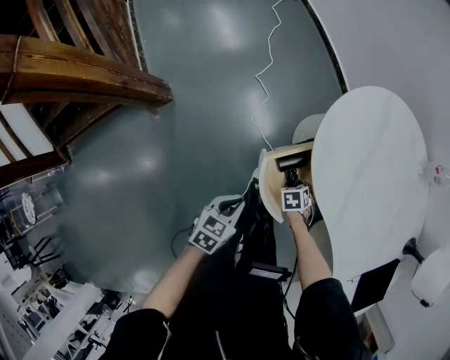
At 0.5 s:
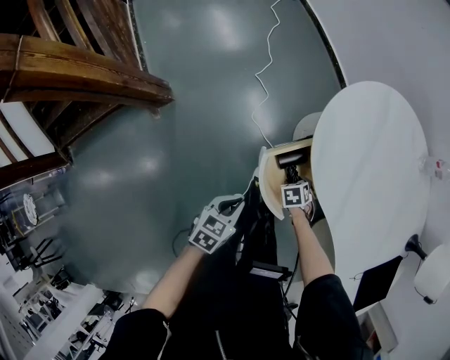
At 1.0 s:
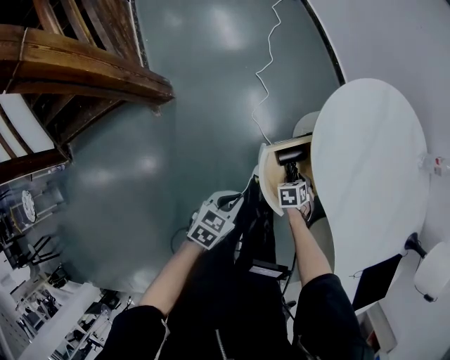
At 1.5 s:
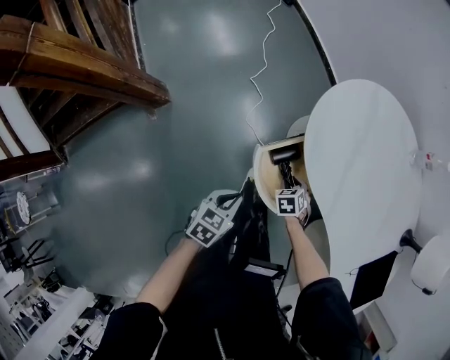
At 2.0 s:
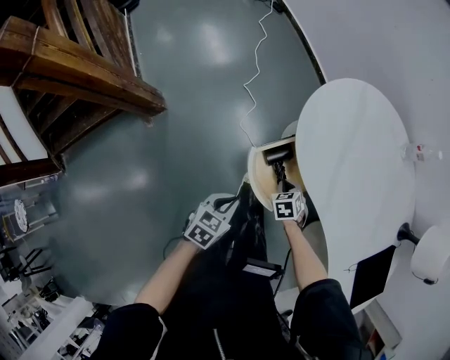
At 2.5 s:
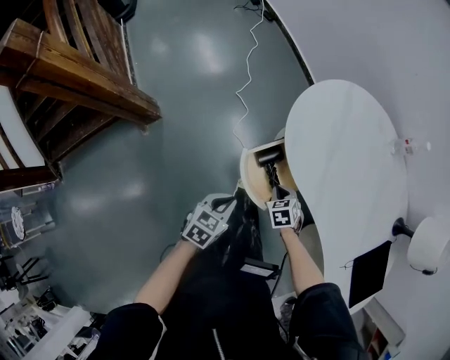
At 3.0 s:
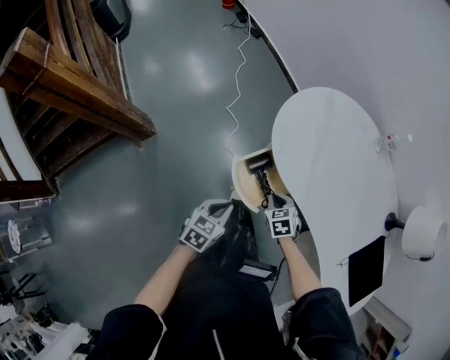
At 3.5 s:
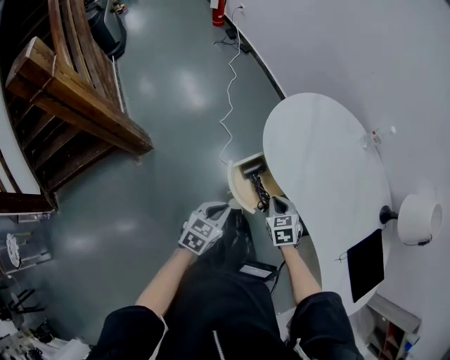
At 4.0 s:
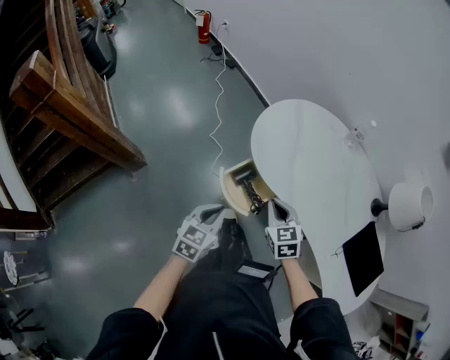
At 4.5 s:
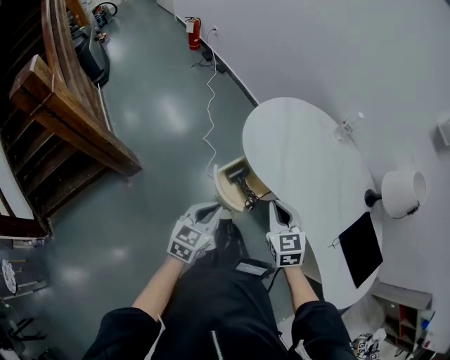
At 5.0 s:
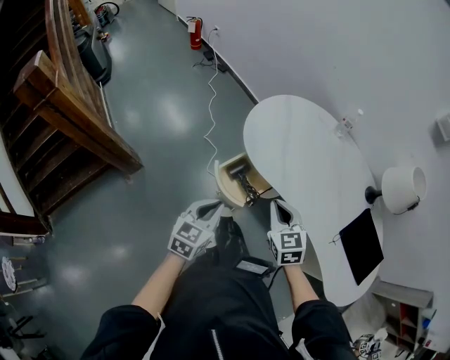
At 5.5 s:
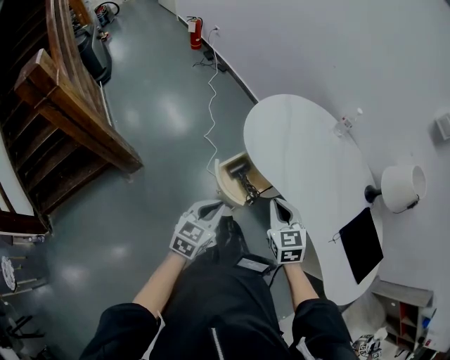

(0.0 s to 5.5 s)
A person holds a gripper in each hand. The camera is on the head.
0.0 s - 2.0 s: The right gripper goes about 5 cm upward, and closes up.
2.0 s - 3.5 s: The right gripper travels upward by roughly 15 cm; the left gripper shifts approximately 10 cm upward.
3.5 s - 5.5 s: The right gripper shifts about 20 cm upward and backward, and swivels about 20 degrees. Meanwhile the left gripper heads upward, covering about 10 cm.

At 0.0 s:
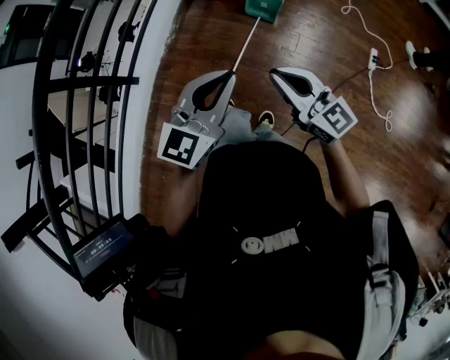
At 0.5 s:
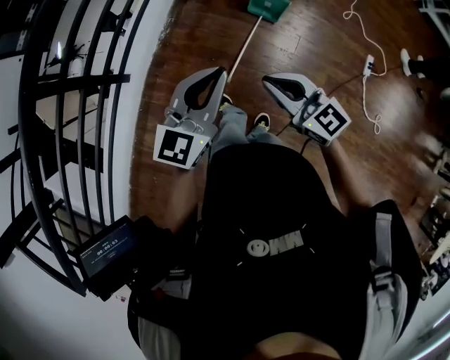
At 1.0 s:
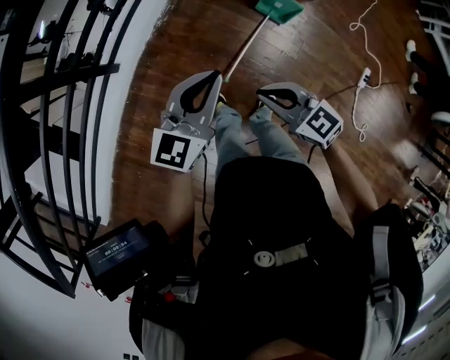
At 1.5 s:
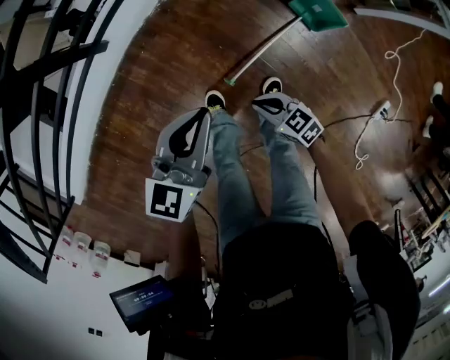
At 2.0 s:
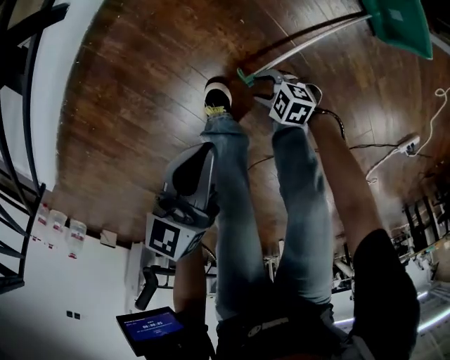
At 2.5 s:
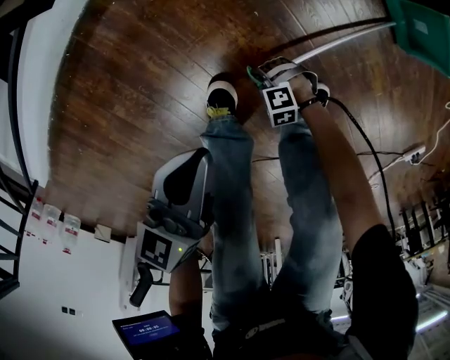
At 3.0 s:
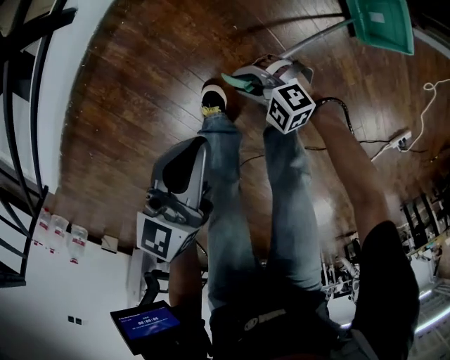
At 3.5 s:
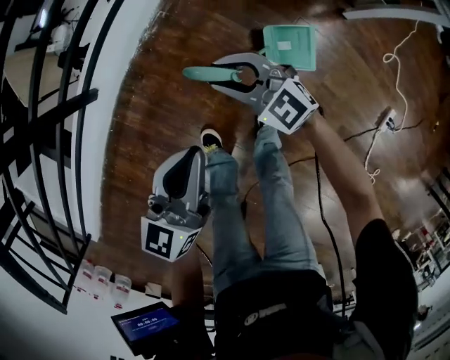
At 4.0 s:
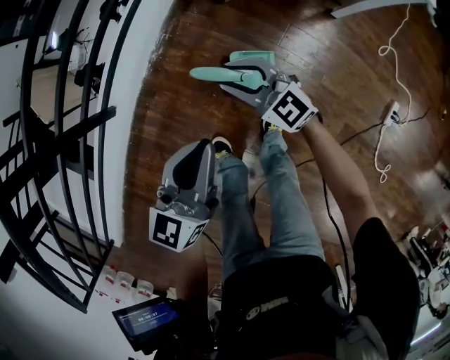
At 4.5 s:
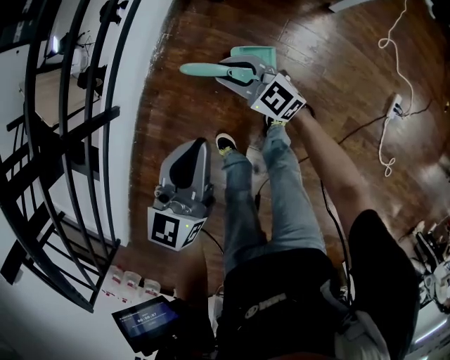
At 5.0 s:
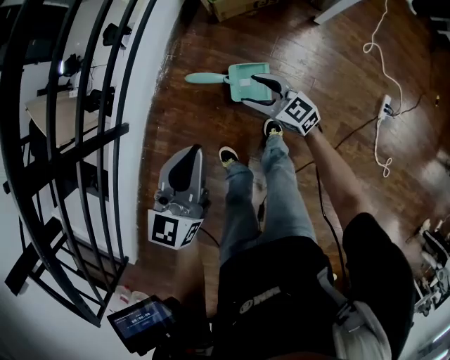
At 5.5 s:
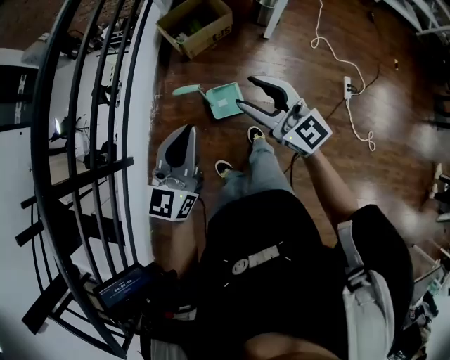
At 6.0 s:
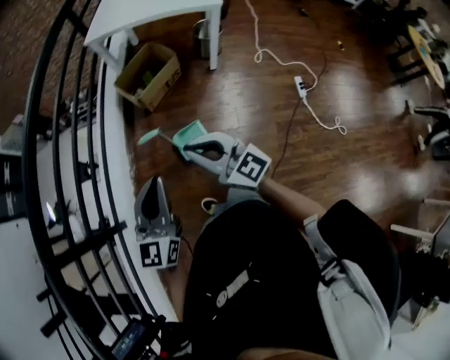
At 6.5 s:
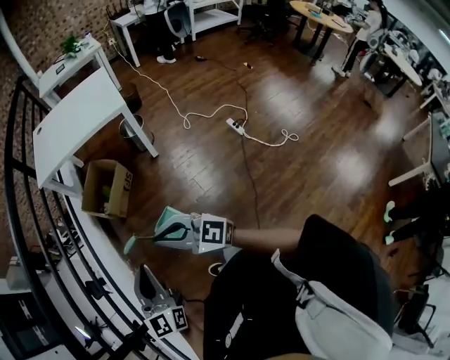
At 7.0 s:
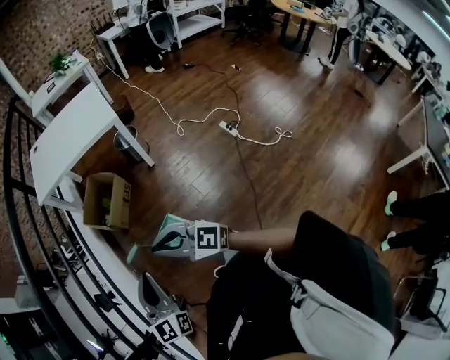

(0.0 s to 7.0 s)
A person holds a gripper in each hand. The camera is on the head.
0.0 s - 2.0 s: The two grippers go some 60 cm downward. The right gripper tilts its fingers about 50 degrees downward, and opens; the left gripper swivels some 60 degrees.
2.0 s - 3.5 s: The left gripper goes about 25 cm upward, and swivels approximately 30 degrees; the right gripper shifts about 40 cm upward, and tips its fingers upward by about 30 degrees.
3.5 s - 5.0 s: The left gripper heads upward, covering approximately 10 cm, while the right gripper goes about 10 cm to the right, turns by some 30 degrees, and opens.
5.0 s - 7.0 s: The right gripper shifts about 30 cm upward, swivels some 40 degrees, and closes; the left gripper moves upward, roughly 10 cm, and swivels approximately 30 degrees.

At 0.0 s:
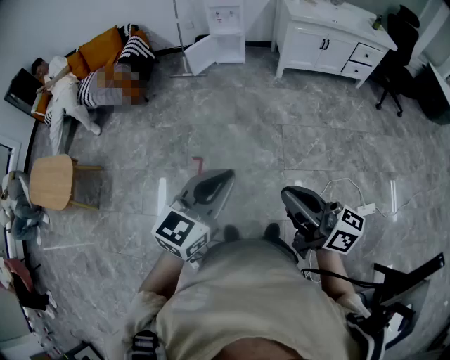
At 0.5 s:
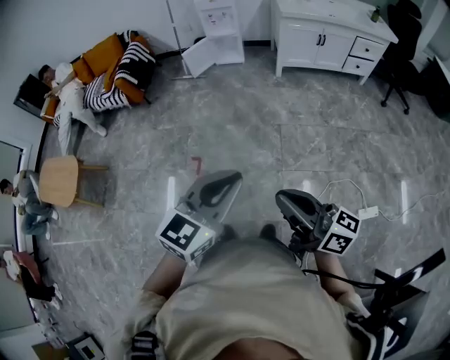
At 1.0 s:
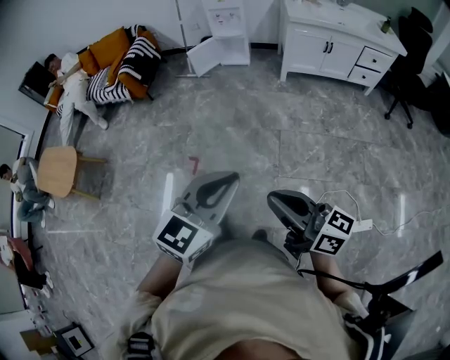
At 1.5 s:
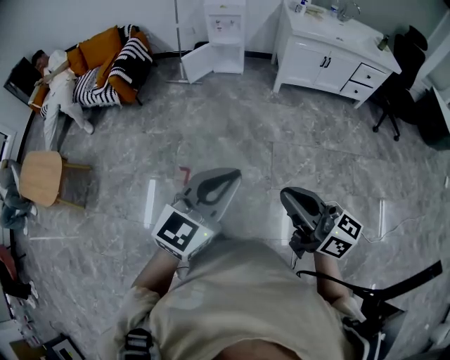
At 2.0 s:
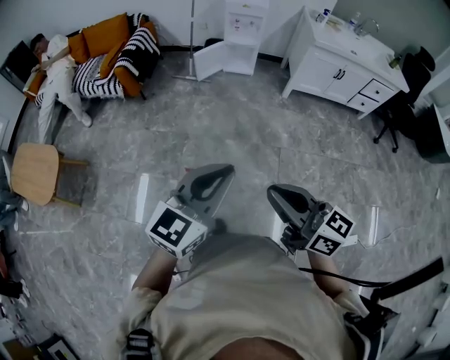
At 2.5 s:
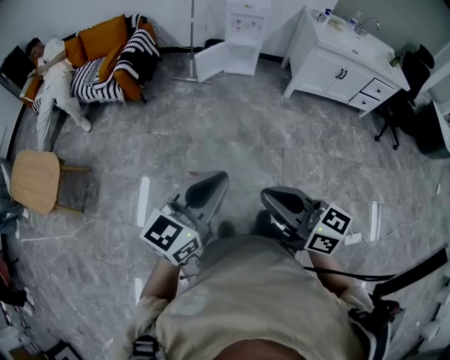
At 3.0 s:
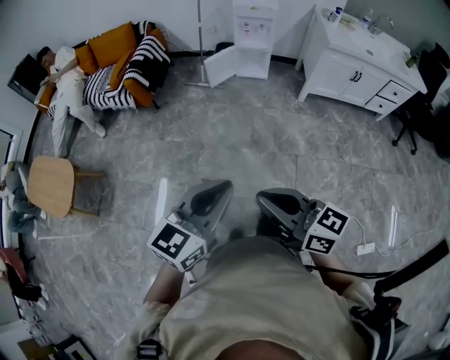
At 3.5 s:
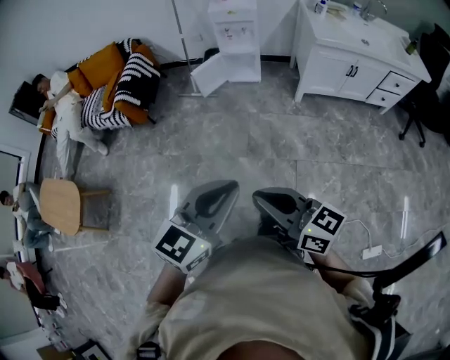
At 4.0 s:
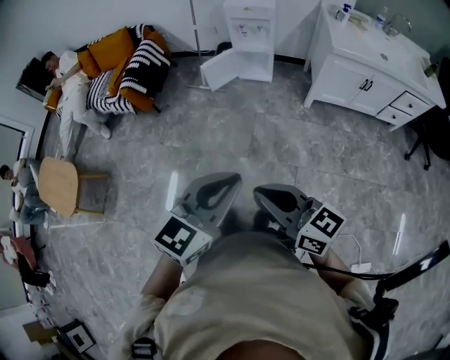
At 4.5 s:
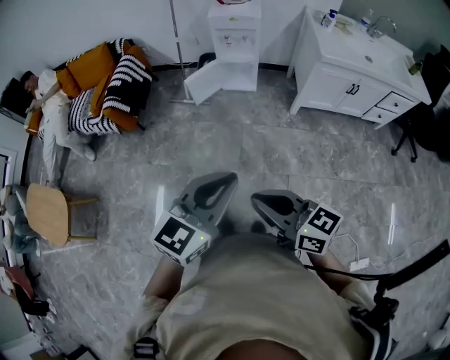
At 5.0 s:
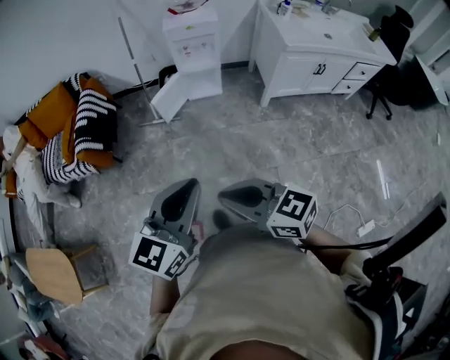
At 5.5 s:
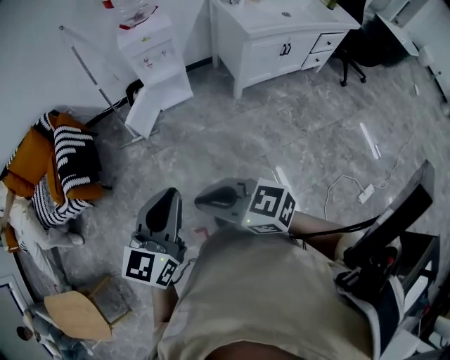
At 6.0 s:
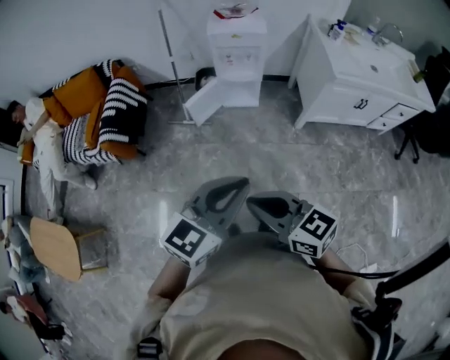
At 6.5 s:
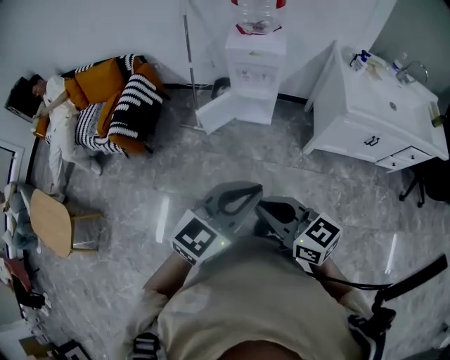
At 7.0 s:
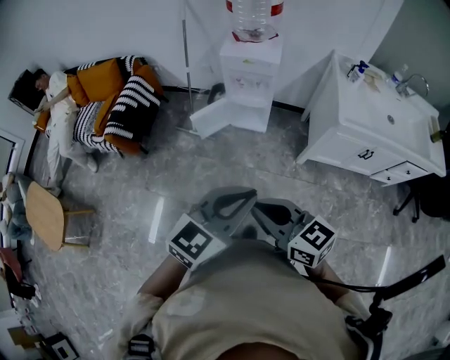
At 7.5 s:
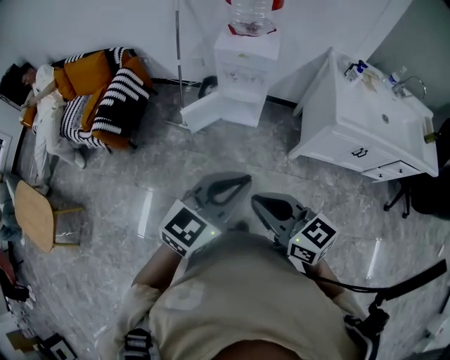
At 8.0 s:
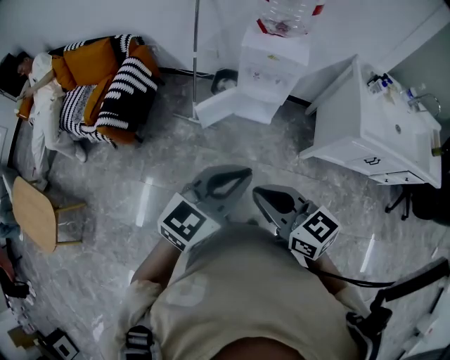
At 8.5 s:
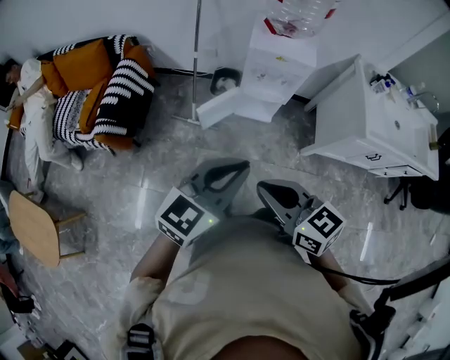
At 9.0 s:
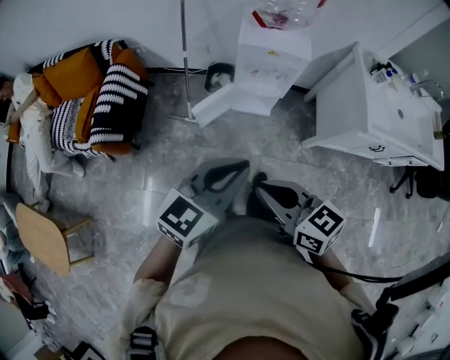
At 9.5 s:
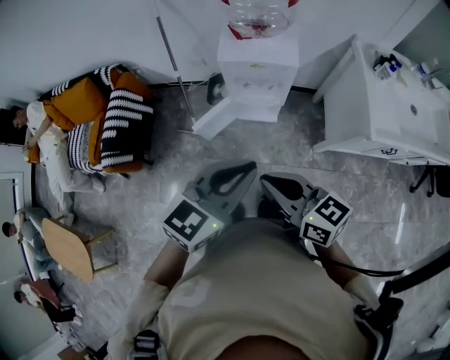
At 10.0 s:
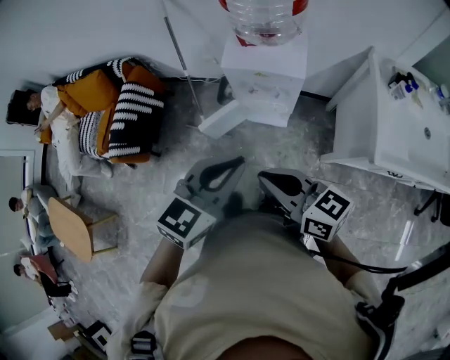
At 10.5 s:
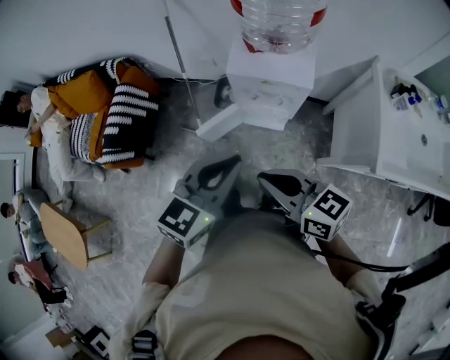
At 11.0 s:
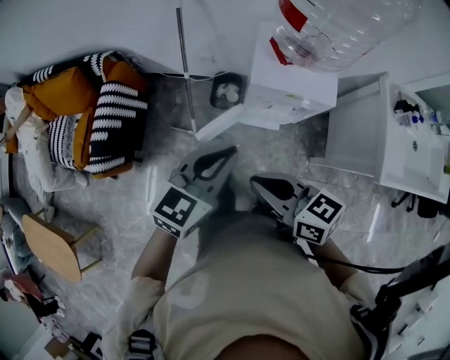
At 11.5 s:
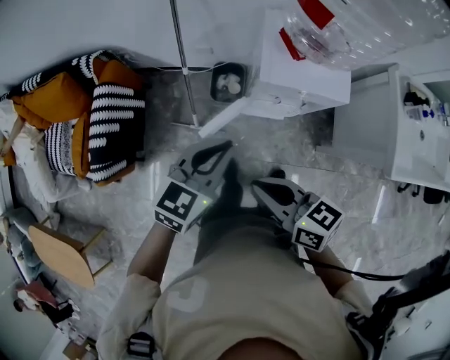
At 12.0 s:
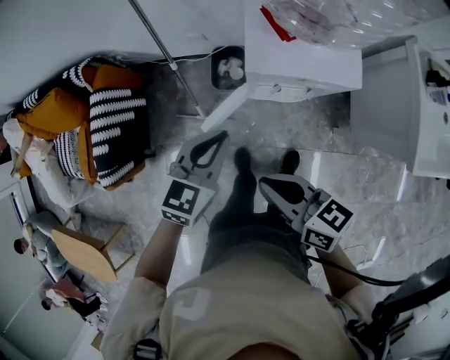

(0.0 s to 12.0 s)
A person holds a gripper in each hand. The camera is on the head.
0.0 s - 2.0 s: Both grippers move forward, some 15 cm. The left gripper travels to the right and back again, roughly 15 cm each way. The right gripper travels to the right and back again, some 15 cm each way.
2.0 s - 4.0 s: The grippers both shift forward and to the right by about 25 cm.
4.0 s - 6.0 s: The right gripper travels forward and to the left by about 25 cm. The left gripper moves forward, about 25 cm.
6.0 s - 8.0 s: Both grippers travel together forward, roughly 20 cm.
8.0 s - 10.0 s: The right gripper shifts approximately 25 cm forward and to the right, while the left gripper is displaced forward by about 20 cm.
10.0 s - 12.0 s: The left gripper moves forward, downward and to the left, approximately 35 cm. Meanwhile the right gripper is displaced forward, to the left and downward by roughly 25 cm.

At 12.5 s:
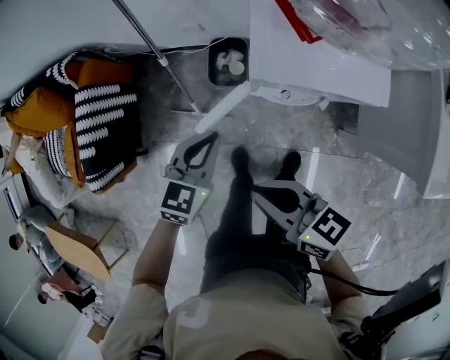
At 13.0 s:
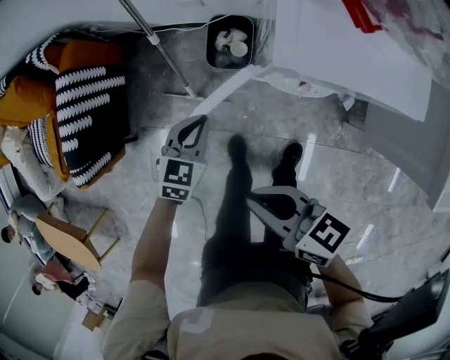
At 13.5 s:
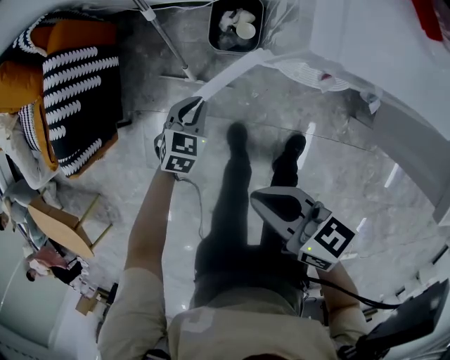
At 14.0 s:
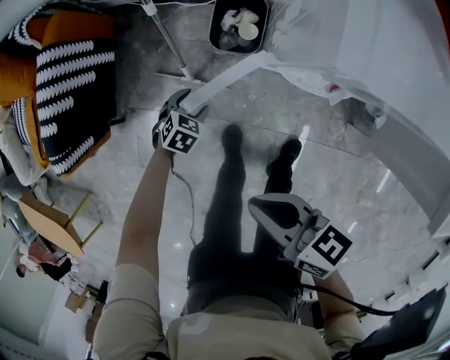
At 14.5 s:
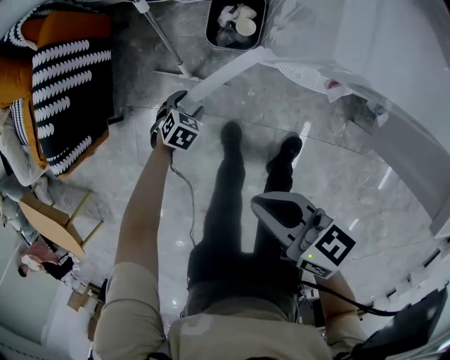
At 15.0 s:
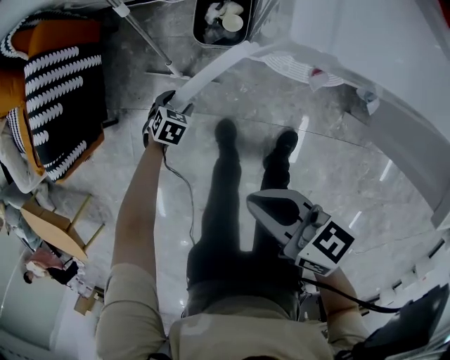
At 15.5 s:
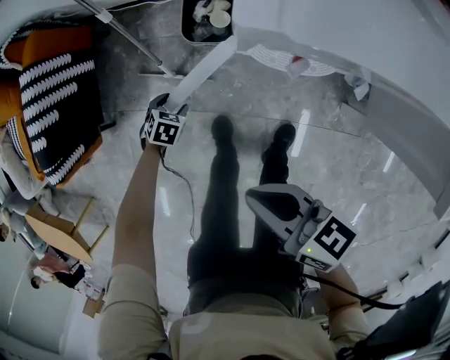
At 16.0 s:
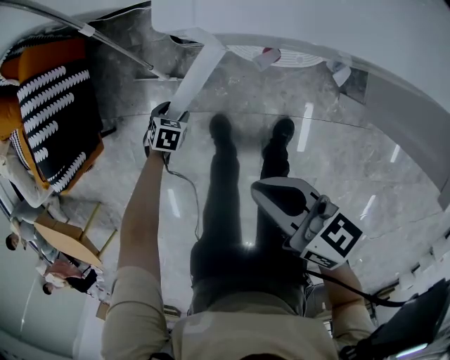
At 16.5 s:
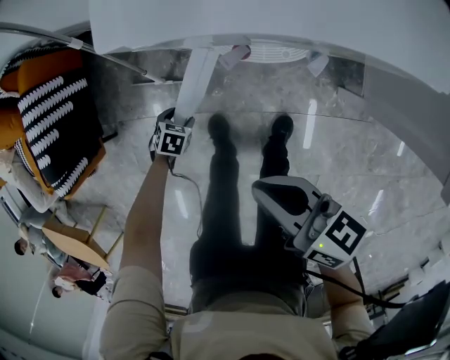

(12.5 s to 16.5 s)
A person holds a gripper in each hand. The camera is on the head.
12.5 s - 14.5 s: The left gripper shifts approximately 40 cm downward, points its fingers approximately 40 degrees further downward, and opens. The right gripper travels downward by some 15 cm.
14.5 s - 16.5 s: The left gripper shifts by some 10 cm. Meanwhile the right gripper shifts by roughly 10 cm.
